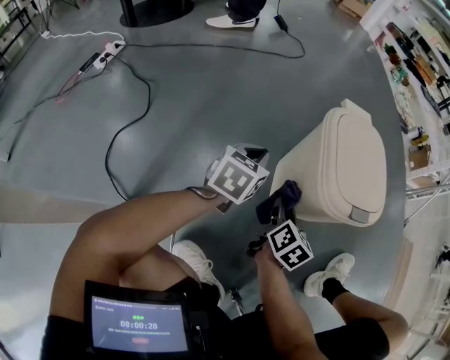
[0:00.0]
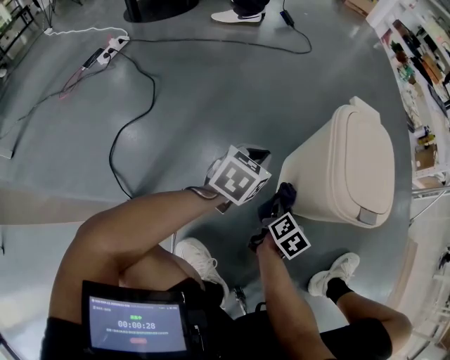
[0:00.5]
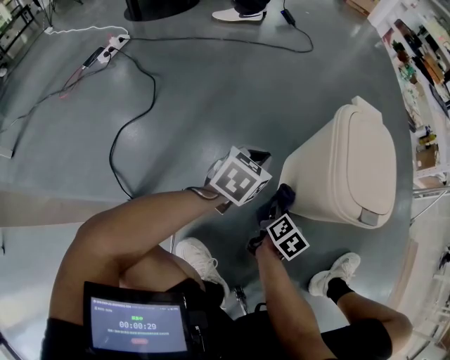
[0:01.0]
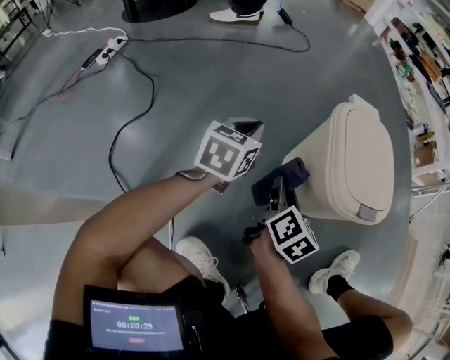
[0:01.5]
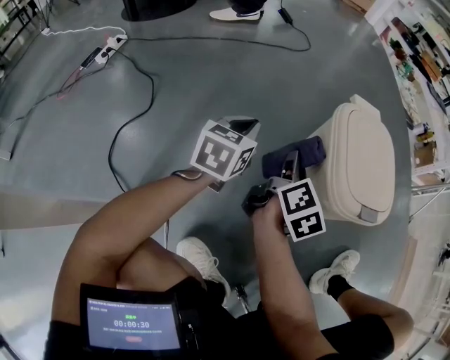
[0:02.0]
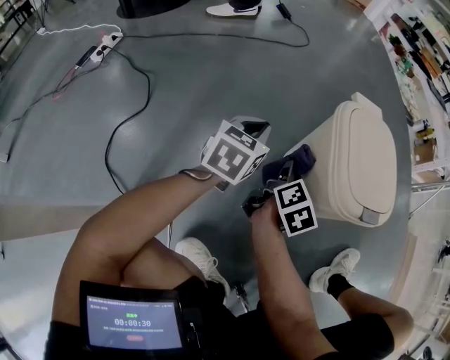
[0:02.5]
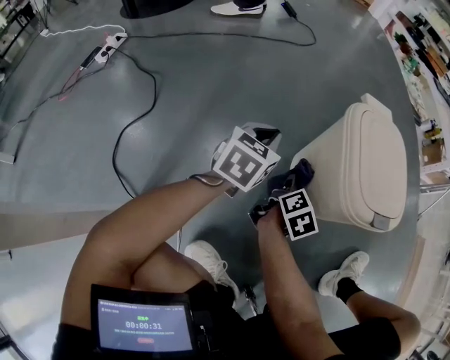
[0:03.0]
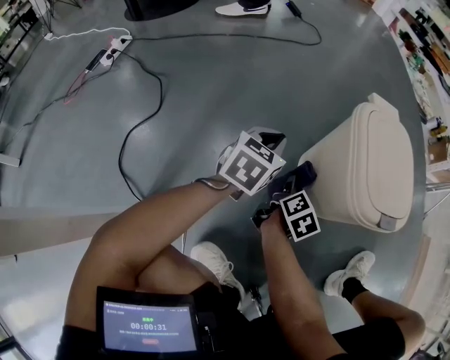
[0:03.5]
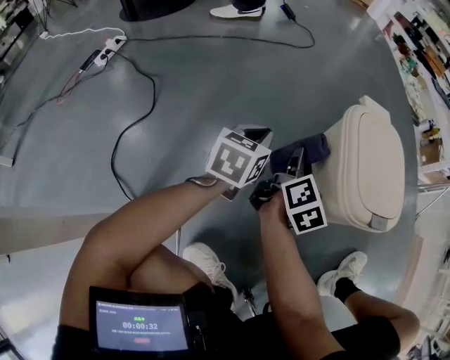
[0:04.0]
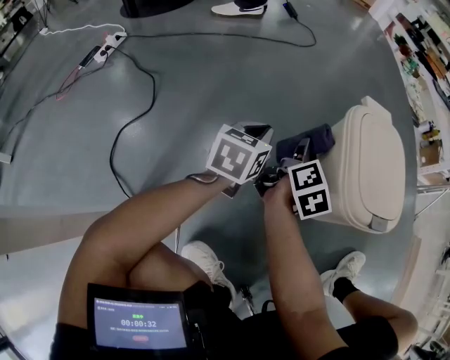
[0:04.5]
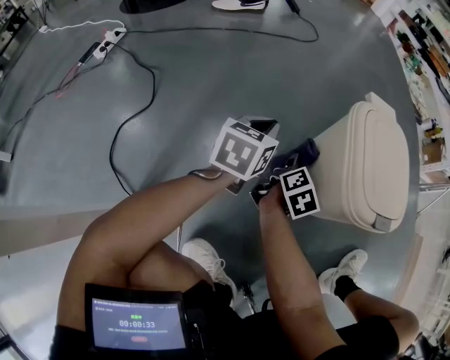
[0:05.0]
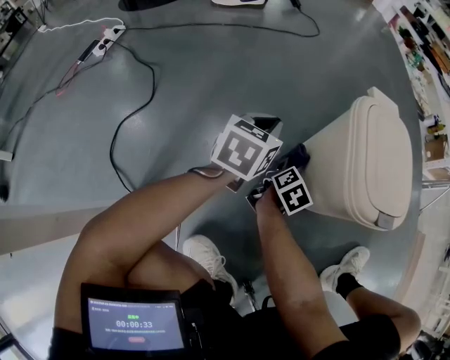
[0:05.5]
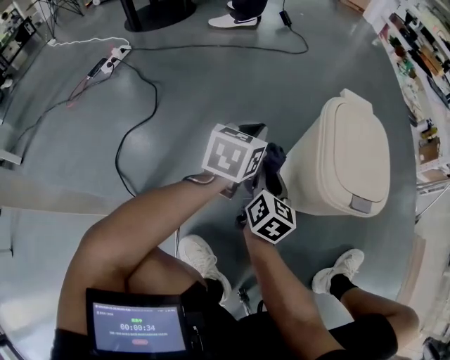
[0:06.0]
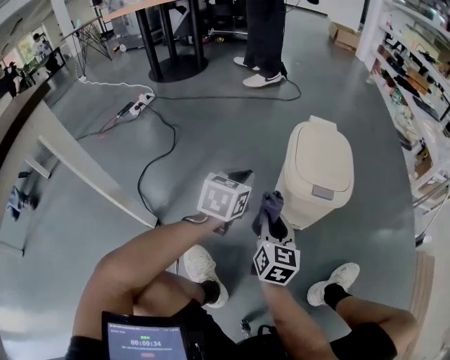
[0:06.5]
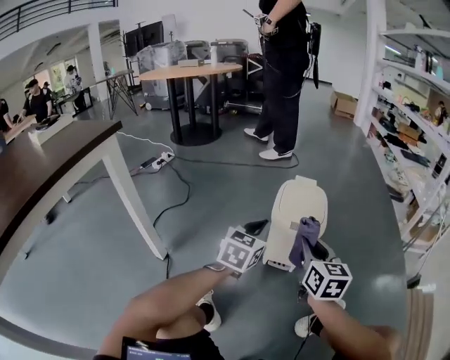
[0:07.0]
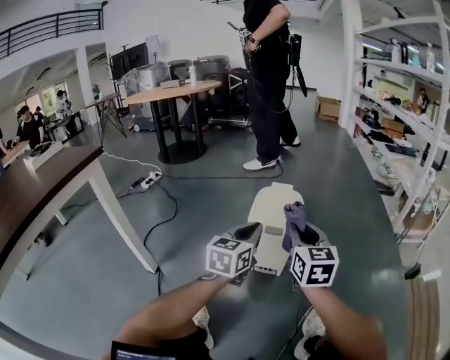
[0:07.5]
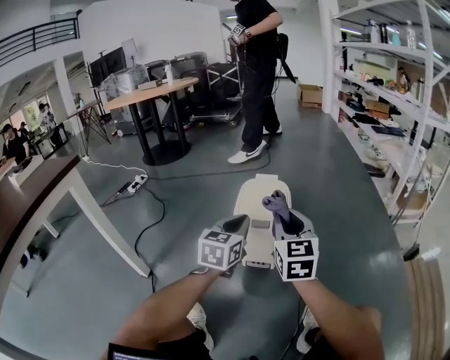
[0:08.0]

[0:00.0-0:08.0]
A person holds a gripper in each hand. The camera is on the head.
0:00.0 to 0:02.0: The right gripper travels upward, forward and to the left by some 10 cm, while the left gripper moves to the left, approximately 5 cm.
0:02.0 to 0:04.0: The right gripper goes downward and returns, some 15 cm each way.
0:04.0 to 0:06.0: The left gripper is displaced upward by approximately 5 cm; the right gripper heads backward, covering some 10 cm, moves roughly 15 cm downward and comes back, and changes its angle by about 30 degrees.
0:06.0 to 0:08.0: The right gripper travels upward, to the right and backward by roughly 40 cm, and rotates approximately 40 degrees. Meanwhile the left gripper heads backward, to the right and upward, covering approximately 35 cm, and rotates about 20 degrees.

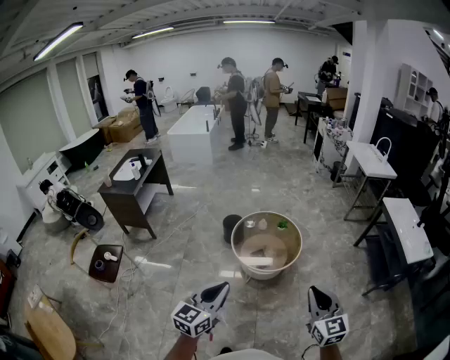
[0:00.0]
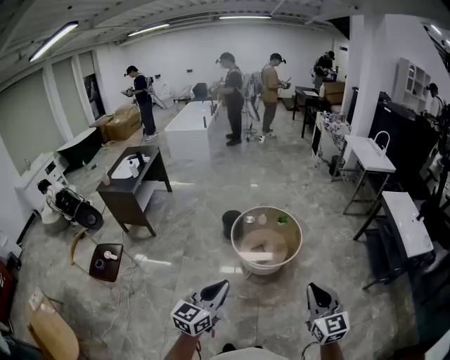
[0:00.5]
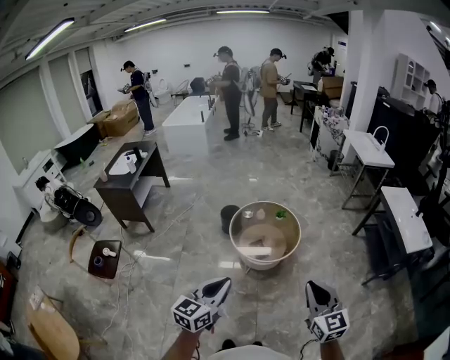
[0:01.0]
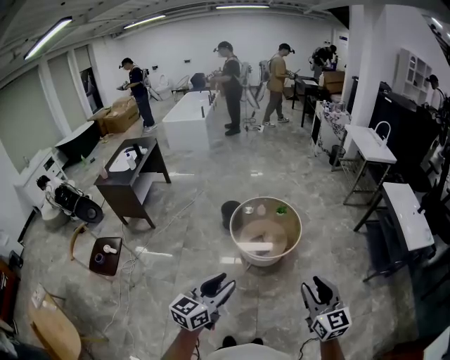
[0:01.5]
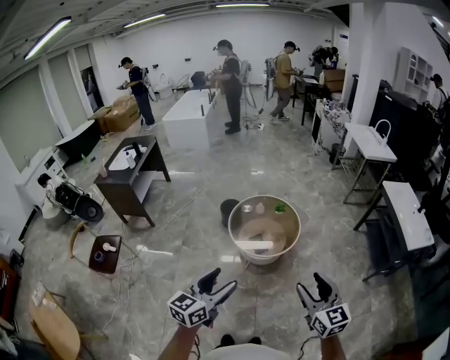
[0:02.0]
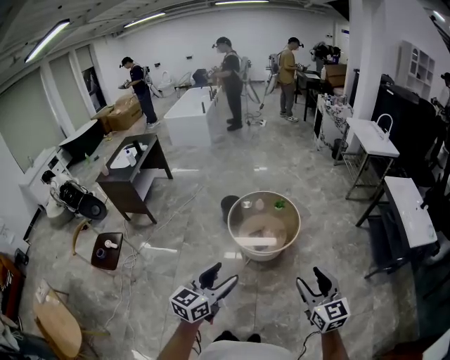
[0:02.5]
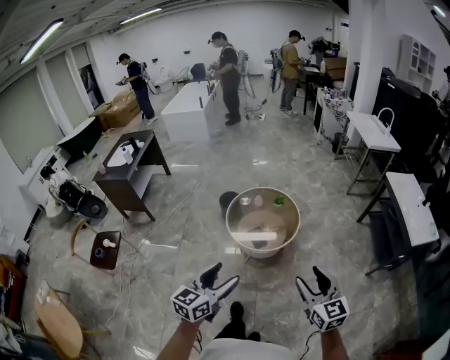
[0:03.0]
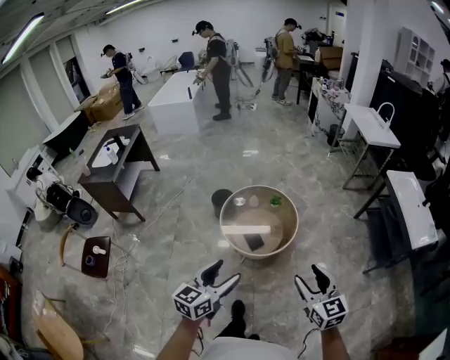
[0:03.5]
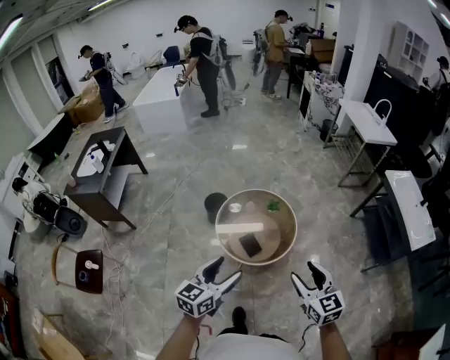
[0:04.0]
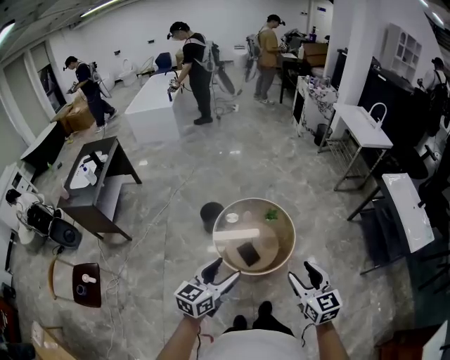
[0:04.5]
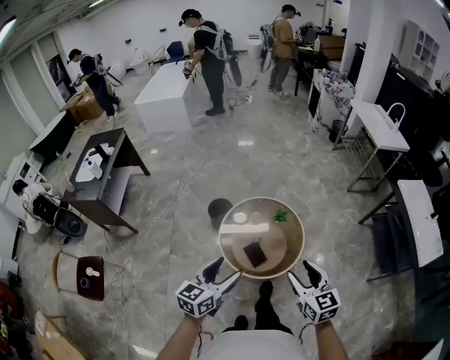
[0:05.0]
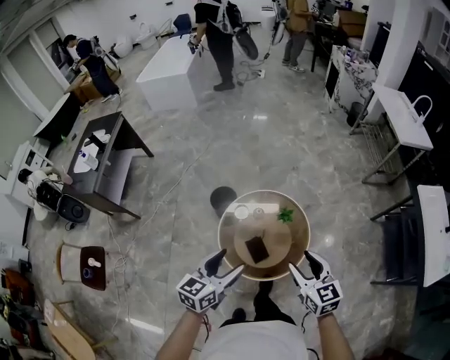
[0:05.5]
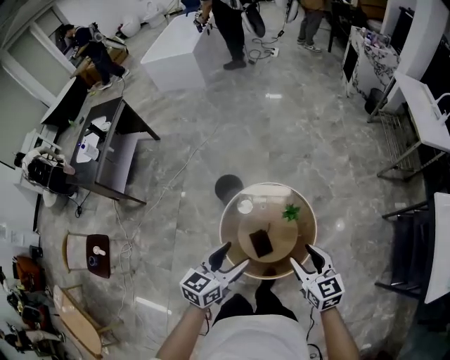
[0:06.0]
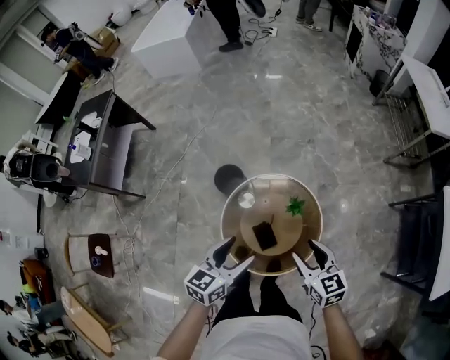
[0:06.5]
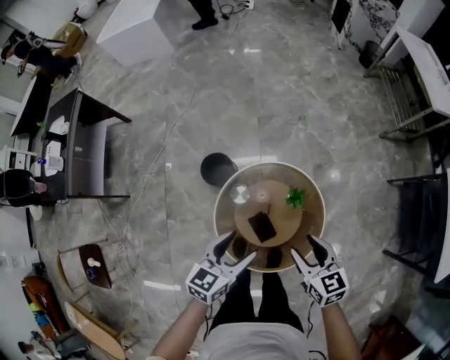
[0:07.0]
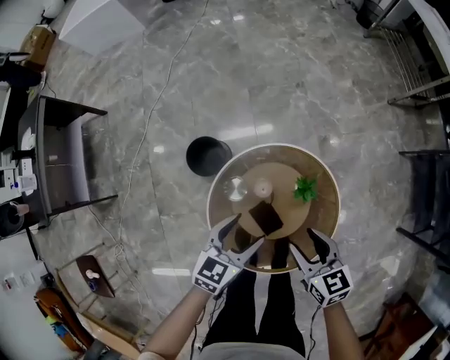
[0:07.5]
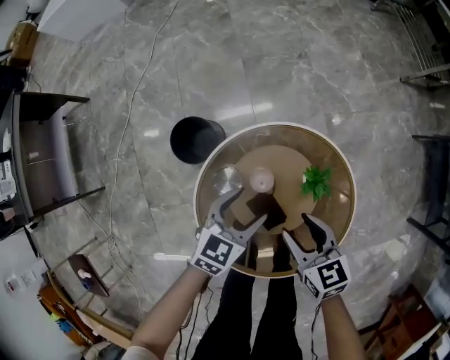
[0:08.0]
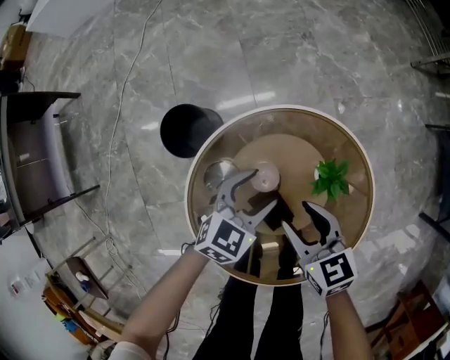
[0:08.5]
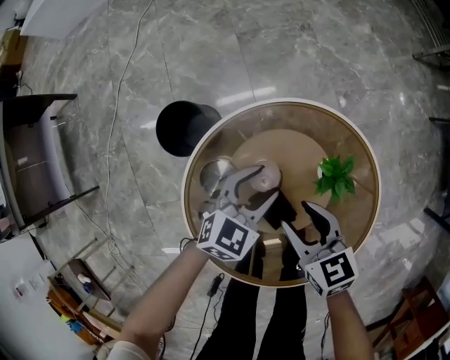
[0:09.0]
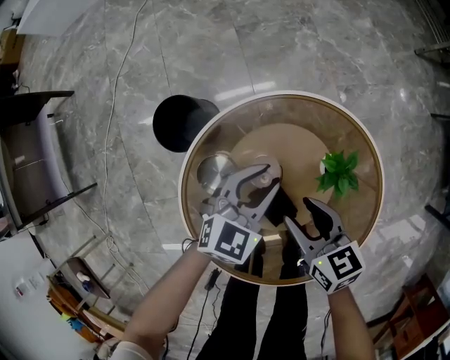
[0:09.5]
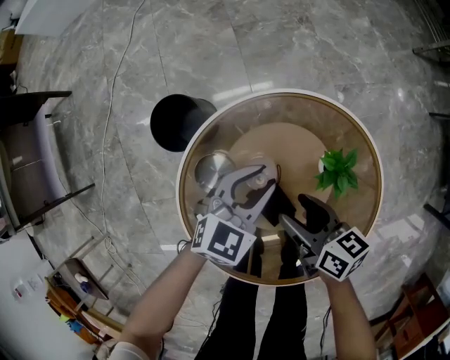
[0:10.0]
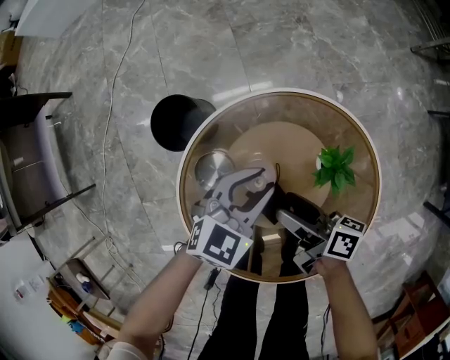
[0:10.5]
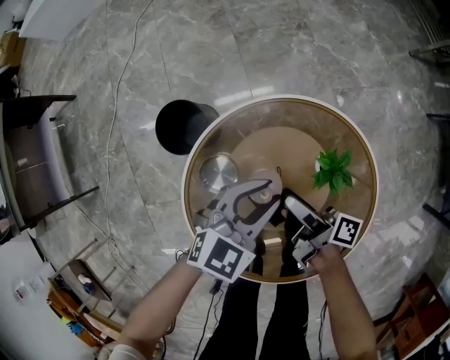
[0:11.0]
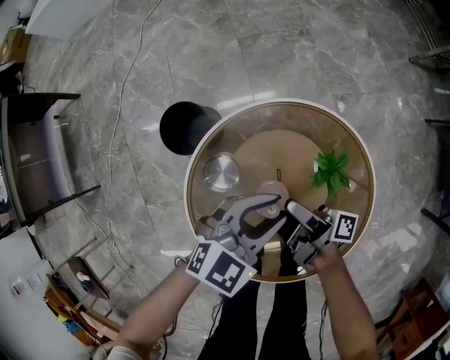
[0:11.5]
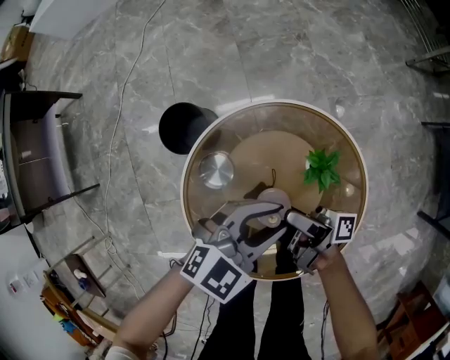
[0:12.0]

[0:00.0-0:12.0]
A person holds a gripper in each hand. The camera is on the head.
0:00.0 to 0:02.0: The left gripper opens. The right gripper opens.
0:02.0 to 0:04.0: The grippers both shift forward by about 25 cm.
0:04.0 to 0:06.0: The two grippers go approximately 35 cm forward.
0:06.0 to 0:08.0: The right gripper is displaced downward by about 40 cm, while the left gripper heads downward and forward, covering roughly 50 cm, and turns by approximately 30 degrees.
0:08.0 to 0:10.0: The two grippers go roughly 10 cm downward. The right gripper rotates about 30 degrees; the left gripper closes its fingers.
0:10.0 to 0:12.0: The left gripper heads upward, backward and to the right, covering approximately 15 cm. Meanwhile the right gripper goes about 10 cm upward, and tips its fingers upward by approximately 40 degrees.

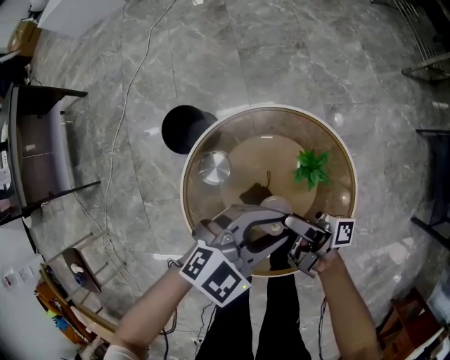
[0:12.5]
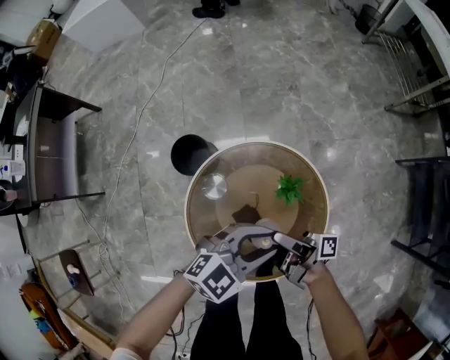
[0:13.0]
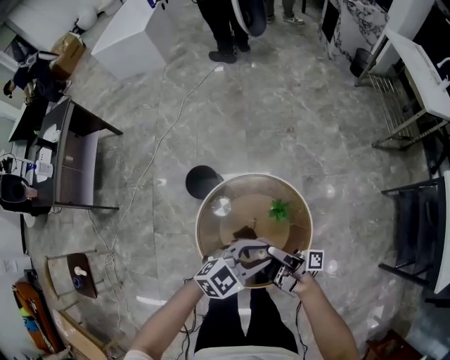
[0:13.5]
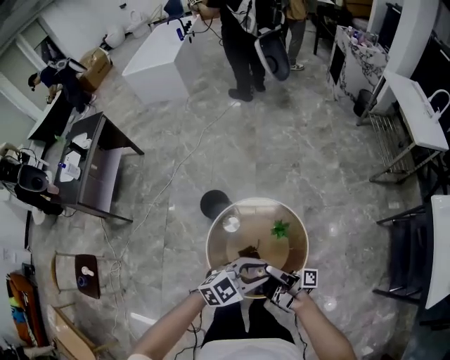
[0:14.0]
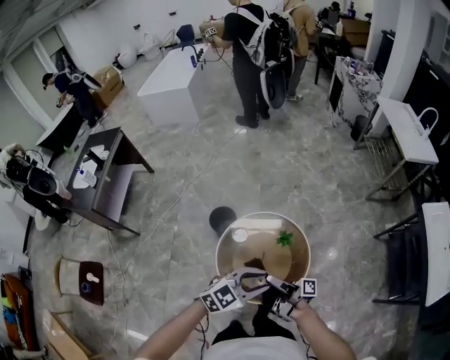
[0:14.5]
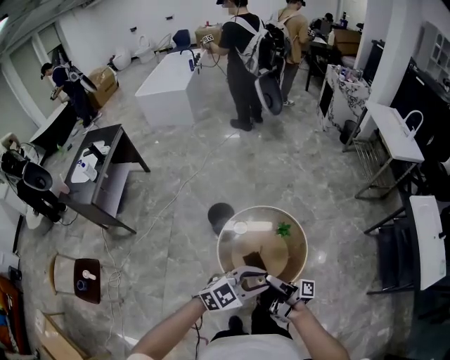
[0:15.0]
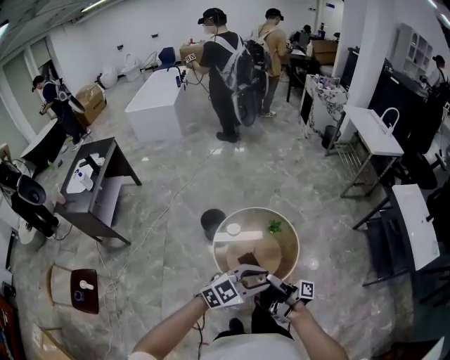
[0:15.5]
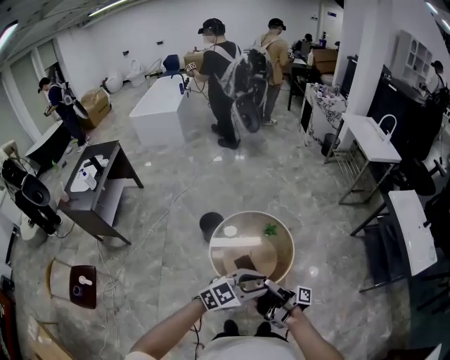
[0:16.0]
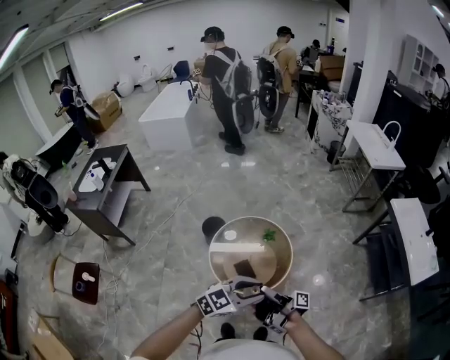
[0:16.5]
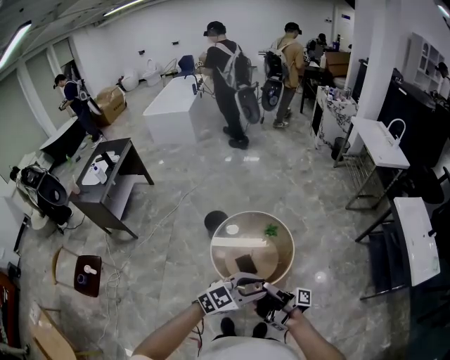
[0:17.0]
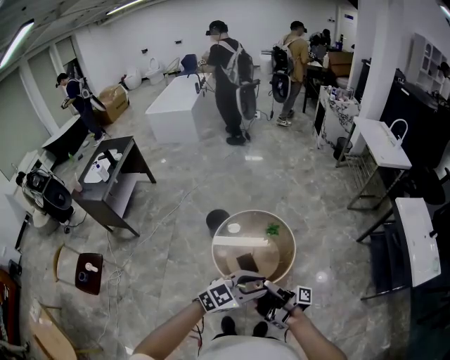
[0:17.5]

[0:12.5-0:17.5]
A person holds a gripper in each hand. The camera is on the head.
0:12.5 to 0:15.0: The two grippers go some 50 cm upward and backward.
0:15.0 to 0:17.5: The two grippers go about 15 cm backward and to the right.

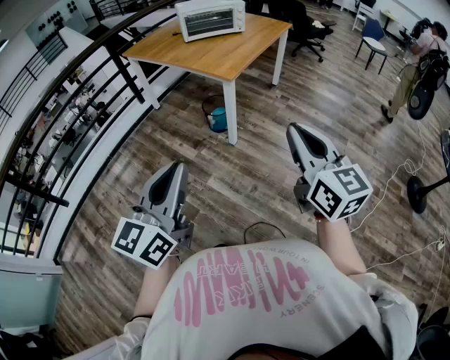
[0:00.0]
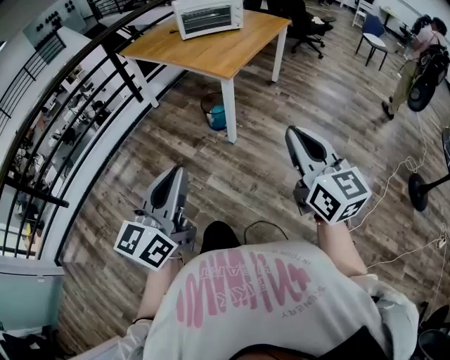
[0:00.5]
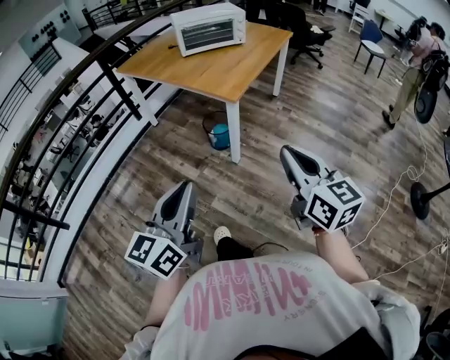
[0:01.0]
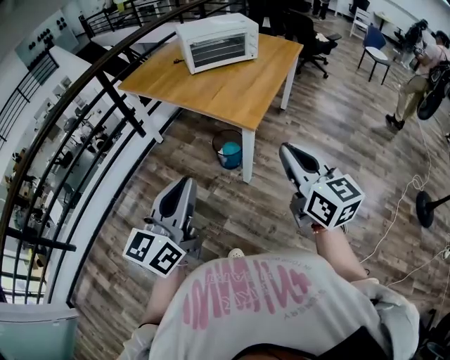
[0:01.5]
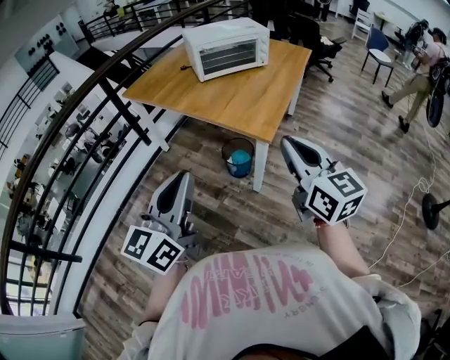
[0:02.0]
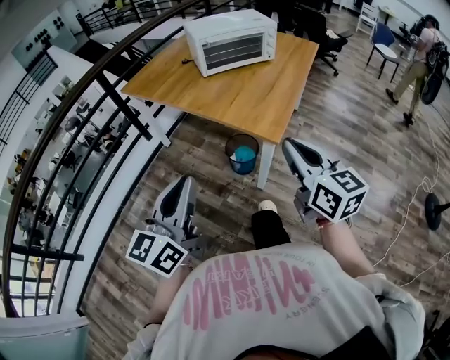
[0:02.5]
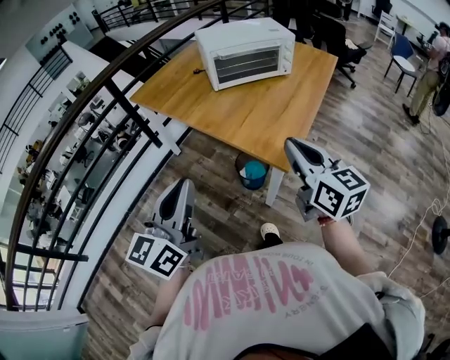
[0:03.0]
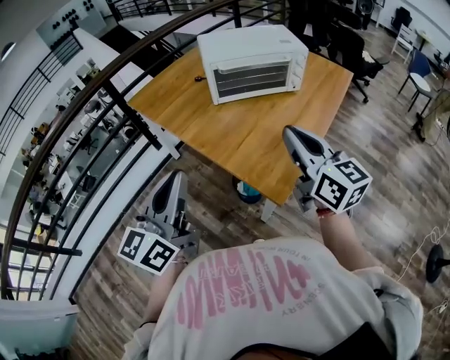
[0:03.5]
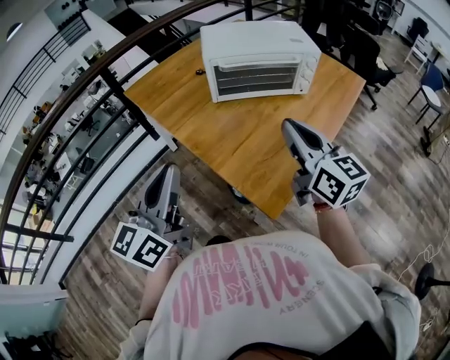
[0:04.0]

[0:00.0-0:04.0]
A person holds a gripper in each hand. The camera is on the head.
0:00.0 to 0:02.0: The two grippers go roughly 35 cm forward and to the left.
0:02.0 to 0:04.0: The grippers both shift forward by about 30 cm.
